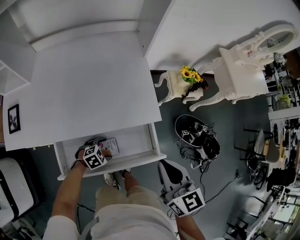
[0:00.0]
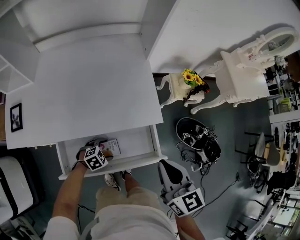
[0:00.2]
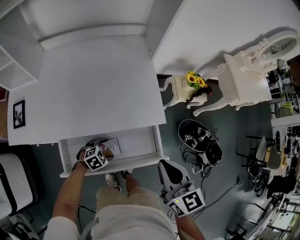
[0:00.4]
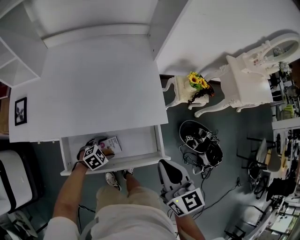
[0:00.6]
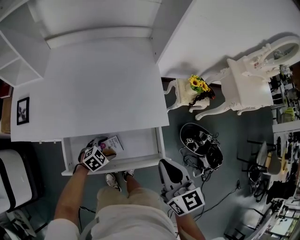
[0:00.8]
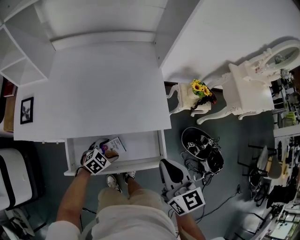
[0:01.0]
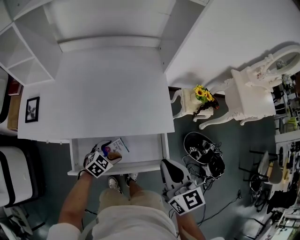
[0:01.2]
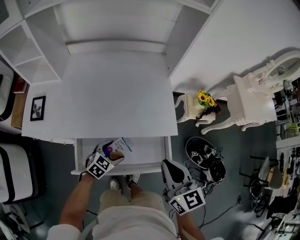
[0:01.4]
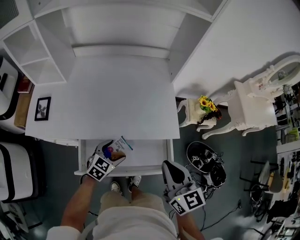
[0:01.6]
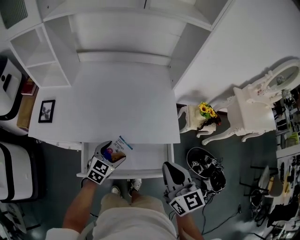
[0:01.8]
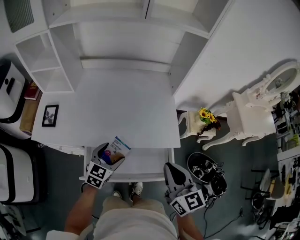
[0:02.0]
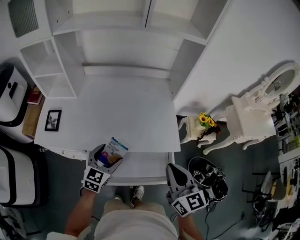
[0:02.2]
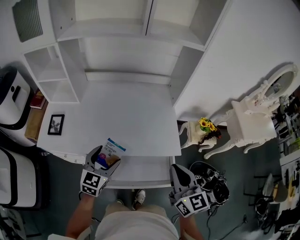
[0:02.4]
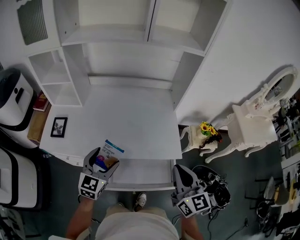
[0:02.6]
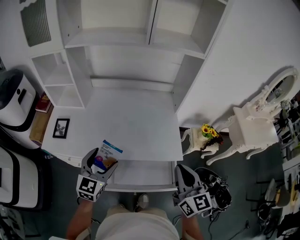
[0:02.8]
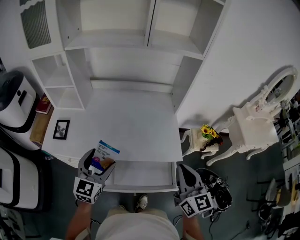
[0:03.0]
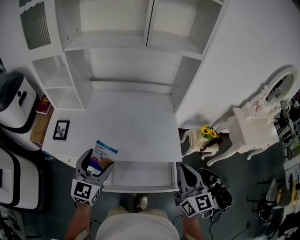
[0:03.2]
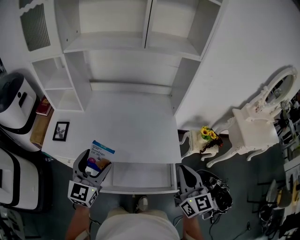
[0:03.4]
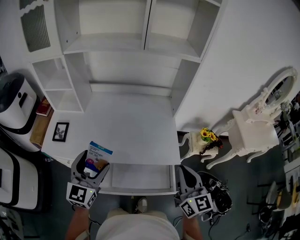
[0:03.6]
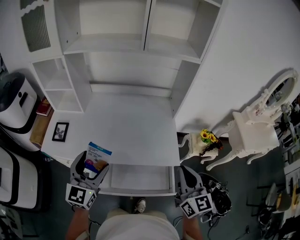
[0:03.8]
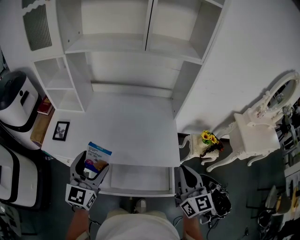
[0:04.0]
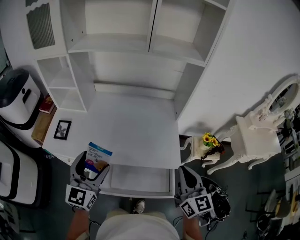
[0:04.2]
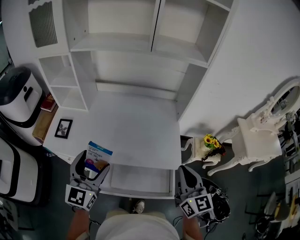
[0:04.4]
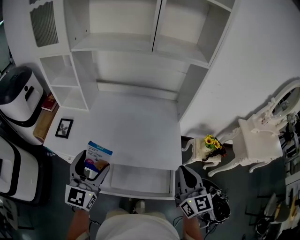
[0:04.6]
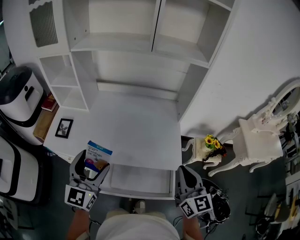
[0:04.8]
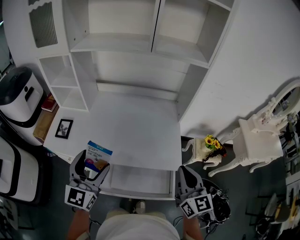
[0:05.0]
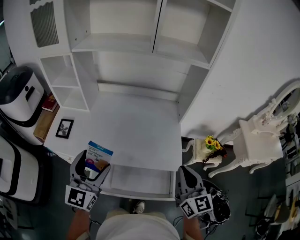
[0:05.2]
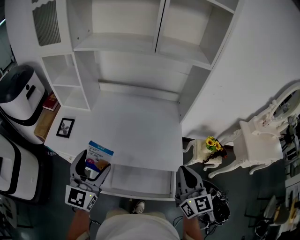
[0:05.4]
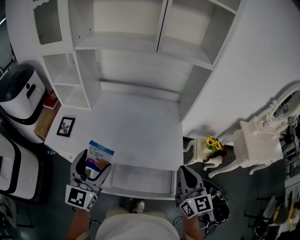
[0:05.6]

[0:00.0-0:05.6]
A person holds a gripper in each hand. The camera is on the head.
0:00.0 to 0:01.4: The right gripper shifts roughly 5 cm to the left; the left gripper heads upward and to the left, covering roughly 15 cm, and swivels some 30 degrees.
0:01.4 to 0:02.8: The left gripper shifts some 30 cm upward and to the left, and points its fingers approximately 30 degrees further upward. Meanwhile the right gripper is displaced upward by about 10 cm.
0:02.8 to 0:04.2: The left gripper goes some 10 cm upward.
0:04.2 to 0:05.6: The grippers move only a little.

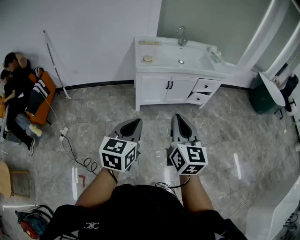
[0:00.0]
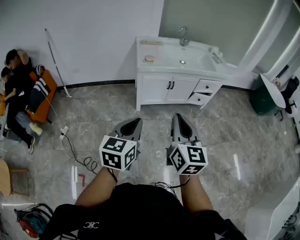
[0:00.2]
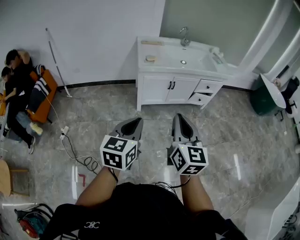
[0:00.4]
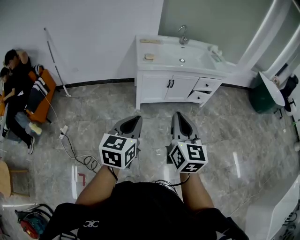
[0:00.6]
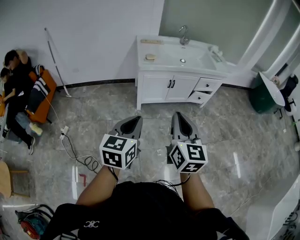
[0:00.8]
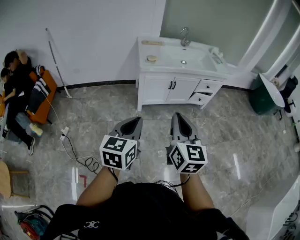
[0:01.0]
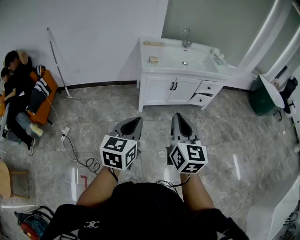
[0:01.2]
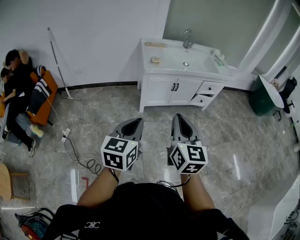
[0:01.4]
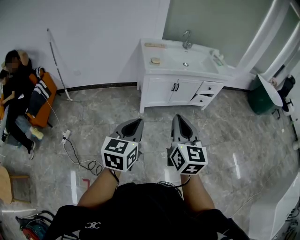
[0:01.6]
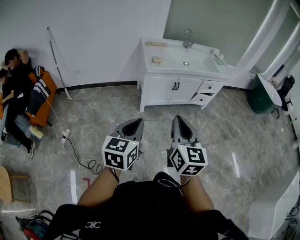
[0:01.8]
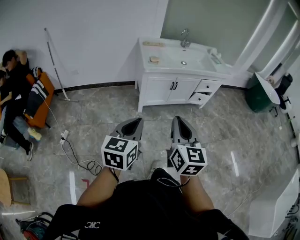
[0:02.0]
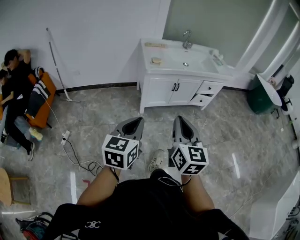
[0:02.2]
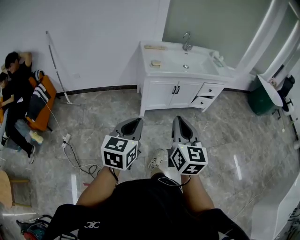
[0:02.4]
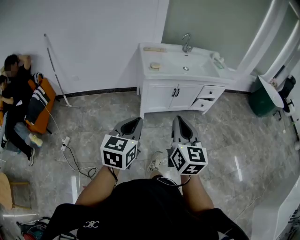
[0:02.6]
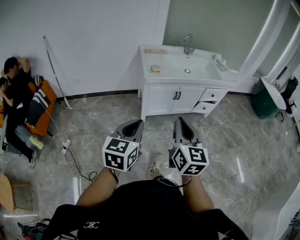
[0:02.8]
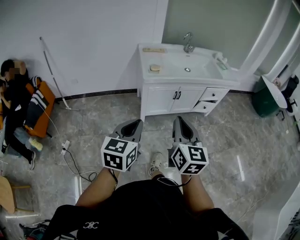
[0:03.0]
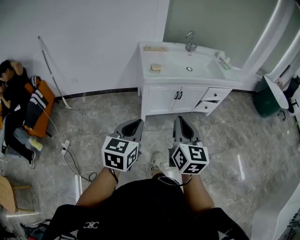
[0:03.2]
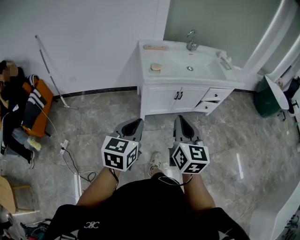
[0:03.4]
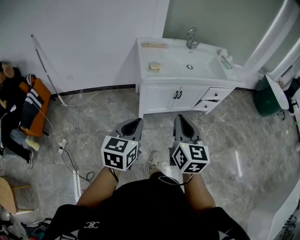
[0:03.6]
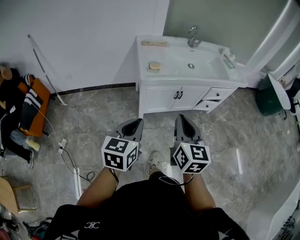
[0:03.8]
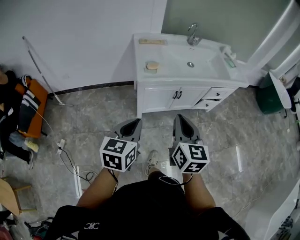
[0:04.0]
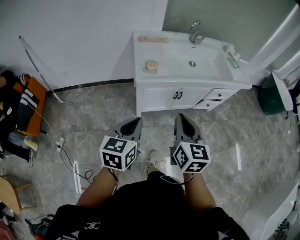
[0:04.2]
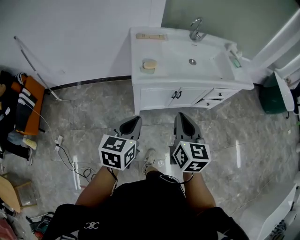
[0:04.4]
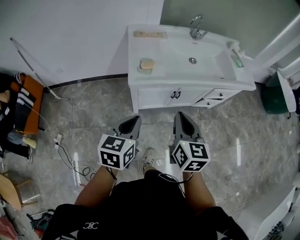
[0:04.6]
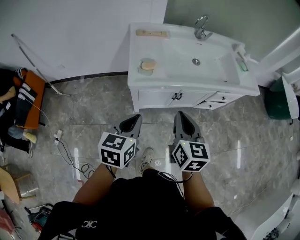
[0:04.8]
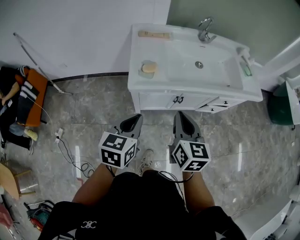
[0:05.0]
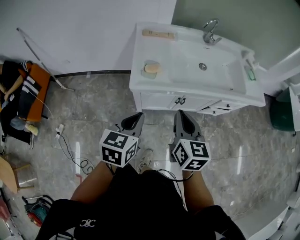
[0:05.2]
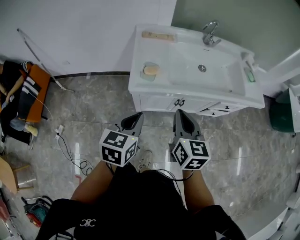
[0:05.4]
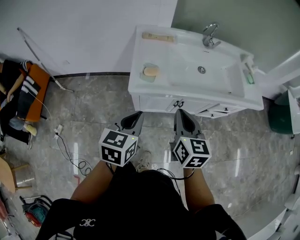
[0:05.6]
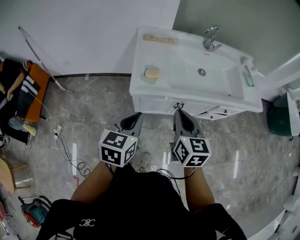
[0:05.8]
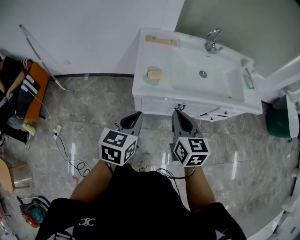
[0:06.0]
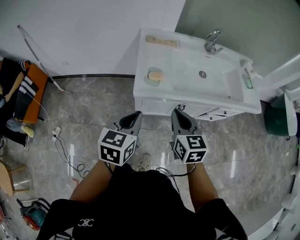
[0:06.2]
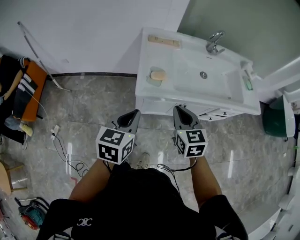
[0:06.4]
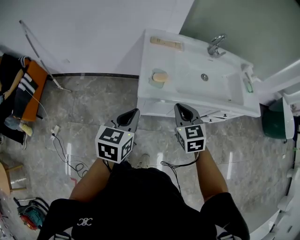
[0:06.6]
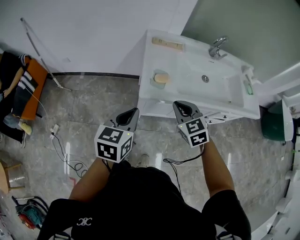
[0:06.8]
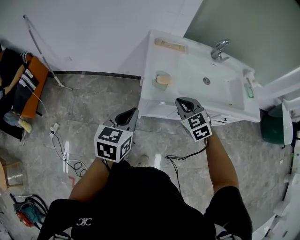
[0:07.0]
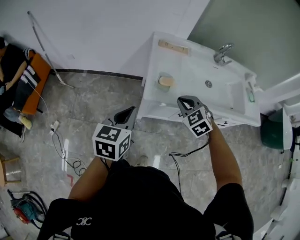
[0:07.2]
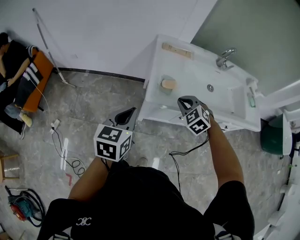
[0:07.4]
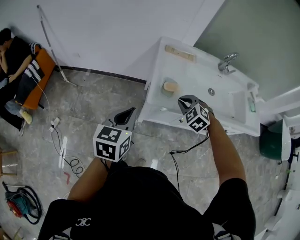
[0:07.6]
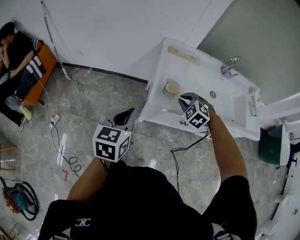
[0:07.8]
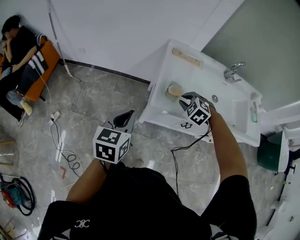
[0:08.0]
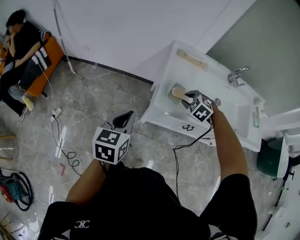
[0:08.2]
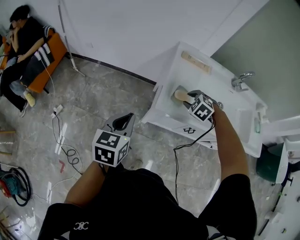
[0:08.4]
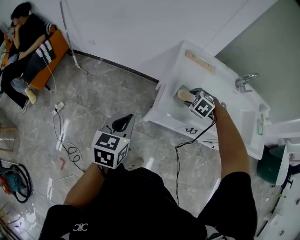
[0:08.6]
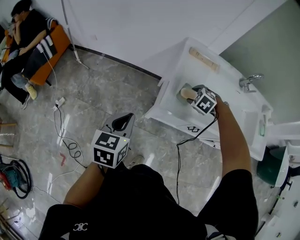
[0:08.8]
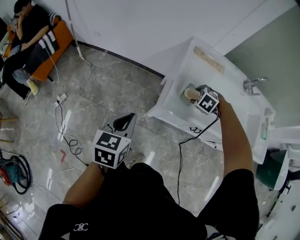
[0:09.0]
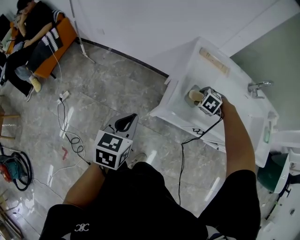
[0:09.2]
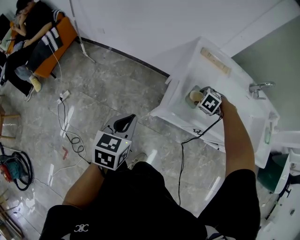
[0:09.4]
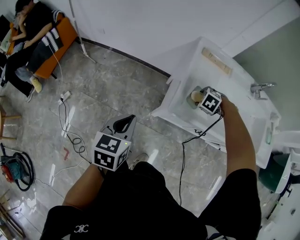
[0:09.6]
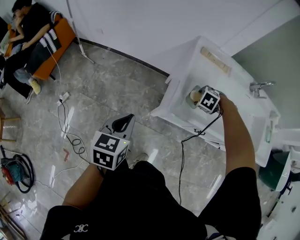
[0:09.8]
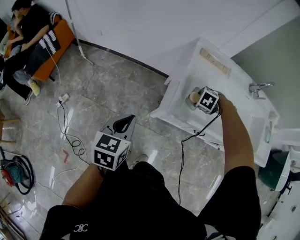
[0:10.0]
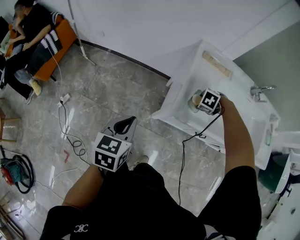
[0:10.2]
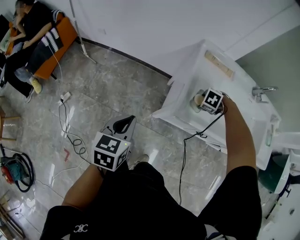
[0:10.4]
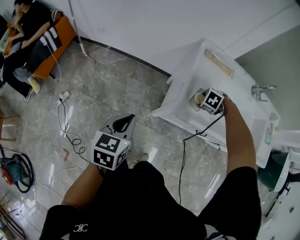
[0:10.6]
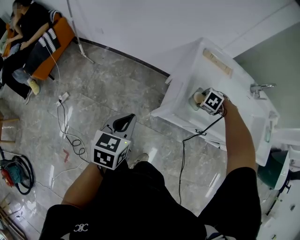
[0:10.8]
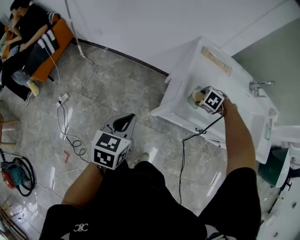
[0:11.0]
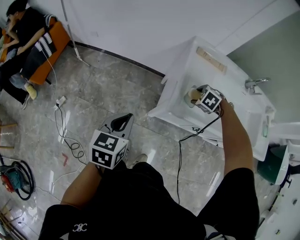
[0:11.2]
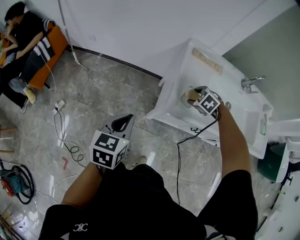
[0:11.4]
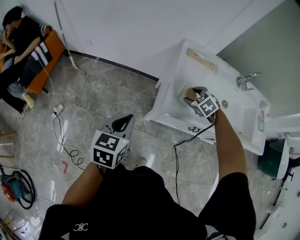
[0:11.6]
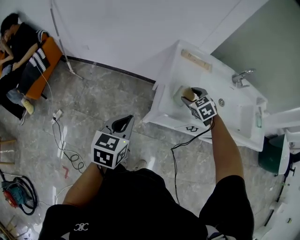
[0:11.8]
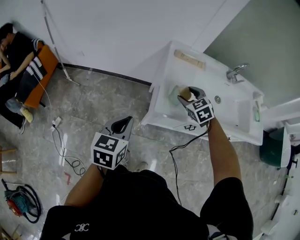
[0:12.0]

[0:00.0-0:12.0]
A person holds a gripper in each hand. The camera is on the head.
0:00.0 to 0:01.6: The two grippers go some 10 cm to the left.
0:01.6 to 0:03.0: The grippers both shift forward by some 10 cm.
0:03.0 to 0:04.4: Both grippers travel together forward, some 25 cm.
0:04.4 to 0:06.0: Both grippers move forward, roughly 10 cm.
0:06.0 to 0:07.6: The left gripper moves to the left, roughly 10 cm. The right gripper goes some 15 cm forward, downward and to the left, and rotates around the line of its fingers by approximately 60 degrees, counterclockwise from behind.
0:07.6 to 0:09.0: The left gripper travels downward by roughly 5 cm. Meanwhile the right gripper shifts by about 15 cm, swivels approximately 30 degrees, and opens its fingers.
0:09.0 to 0:10.4: The left gripper changes place by about 5 cm.
0:10.4 to 0:12.0: The right gripper travels upward by about 15 cm, and points its fingers about 40 degrees further upward. The left gripper shifts by approximately 5 cm.

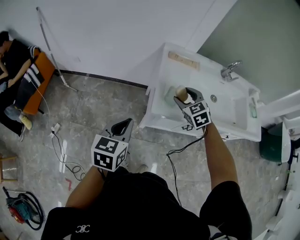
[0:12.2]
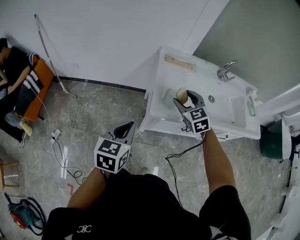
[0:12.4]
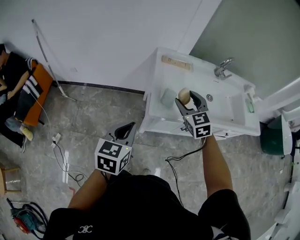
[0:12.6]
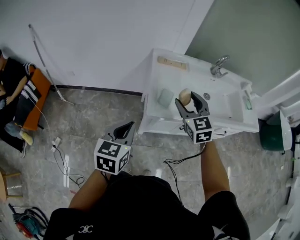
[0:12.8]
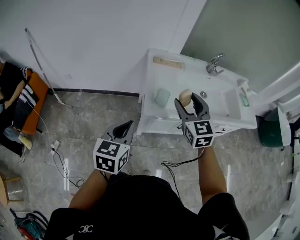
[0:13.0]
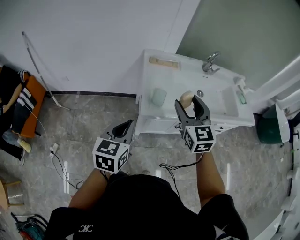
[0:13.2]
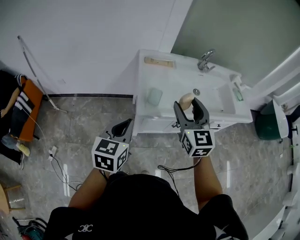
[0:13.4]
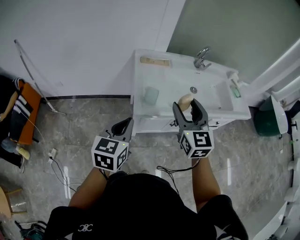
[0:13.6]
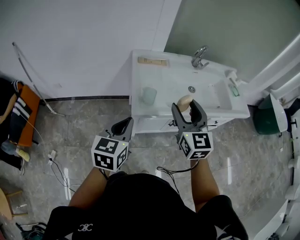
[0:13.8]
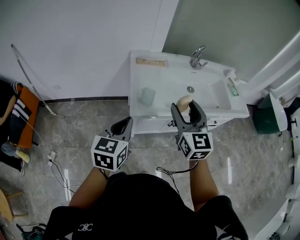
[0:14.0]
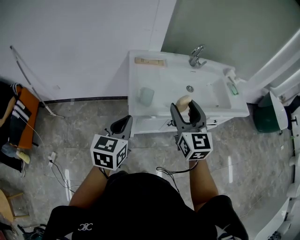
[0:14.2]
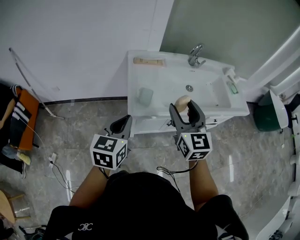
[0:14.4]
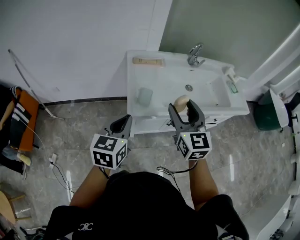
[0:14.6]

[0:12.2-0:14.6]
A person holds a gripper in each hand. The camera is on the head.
0:12.2 to 0:13.4: The right gripper moves upward and backward, roughly 20 cm, and tilts its fingers roughly 30 degrees upward; the left gripper travels to the right by roughly 5 cm.
0:13.4 to 0:14.6: The grippers move only a little.

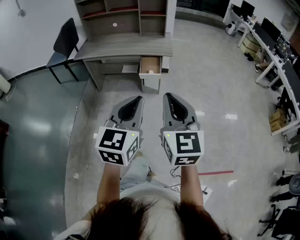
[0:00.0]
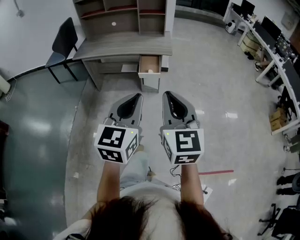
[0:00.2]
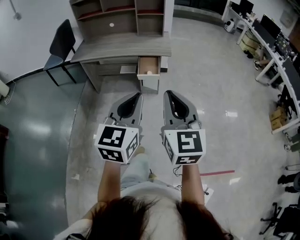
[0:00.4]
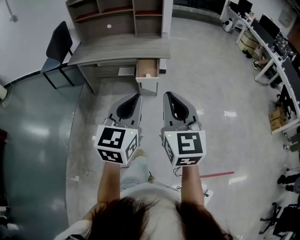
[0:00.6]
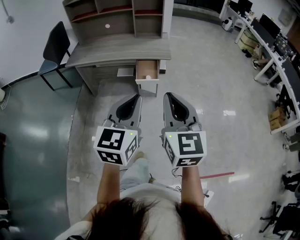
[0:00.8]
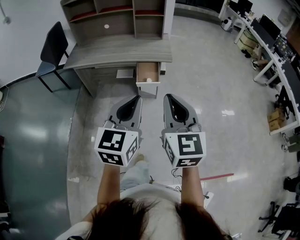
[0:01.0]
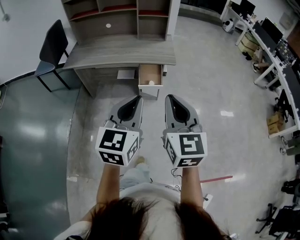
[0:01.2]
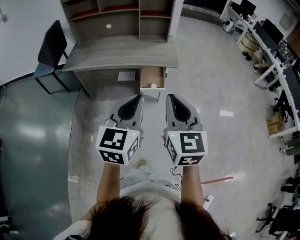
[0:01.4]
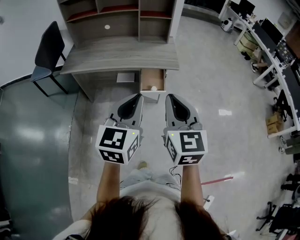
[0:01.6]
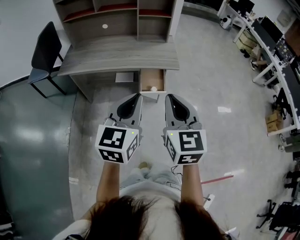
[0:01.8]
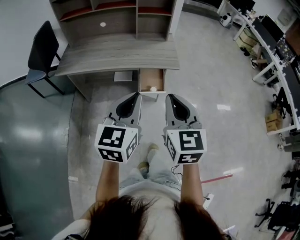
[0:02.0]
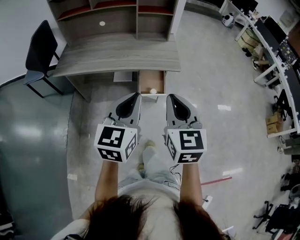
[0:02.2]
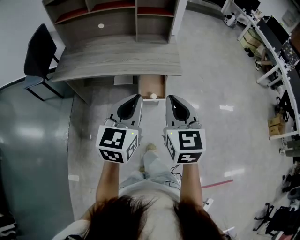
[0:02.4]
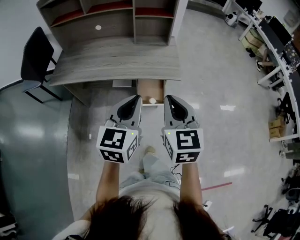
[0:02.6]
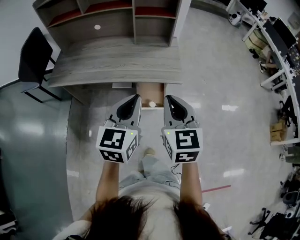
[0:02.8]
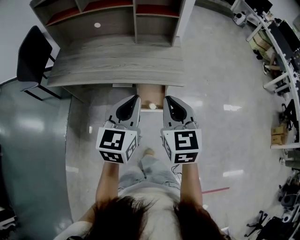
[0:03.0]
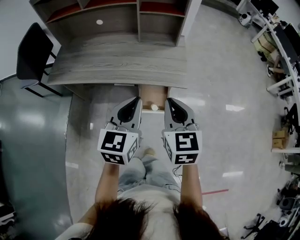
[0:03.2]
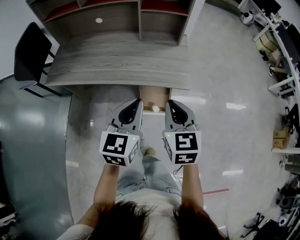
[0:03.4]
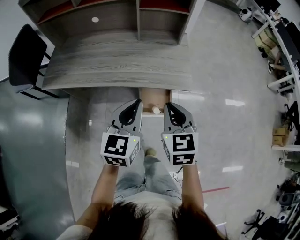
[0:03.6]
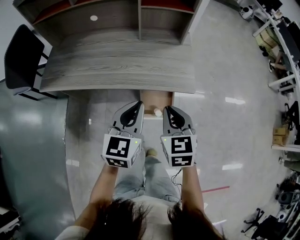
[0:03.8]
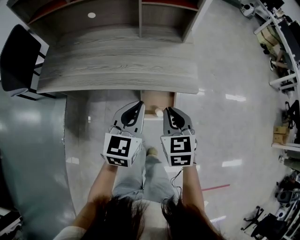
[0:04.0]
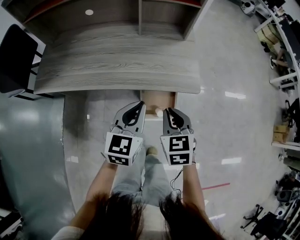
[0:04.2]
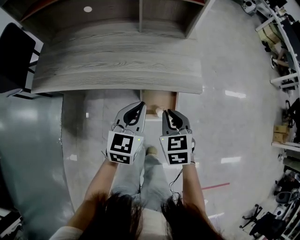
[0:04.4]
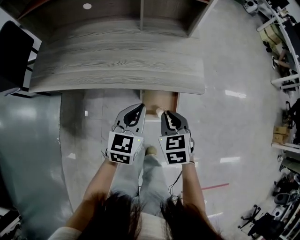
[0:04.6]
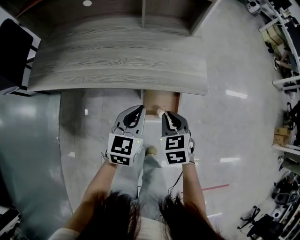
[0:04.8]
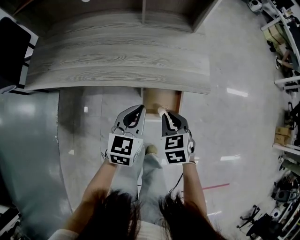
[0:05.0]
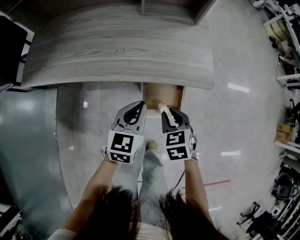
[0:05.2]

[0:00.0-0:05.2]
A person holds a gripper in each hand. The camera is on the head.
0:00.0 to 0:01.8: The right gripper moves forward, about 30 cm; the left gripper goes approximately 30 cm forward and to the left.
0:01.8 to 0:03.4: The left gripper is displaced forward by approximately 25 cm; the right gripper goes approximately 30 cm forward and downward.
0:03.4 to 0:05.2: Both grippers move downward, about 25 cm. The right gripper swivels some 30 degrees.
